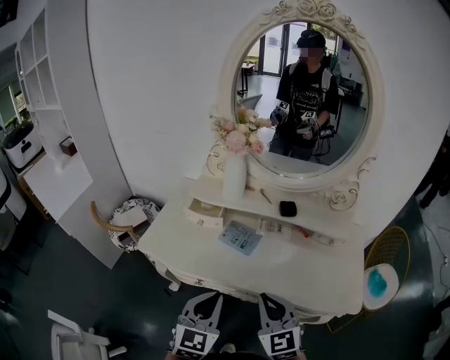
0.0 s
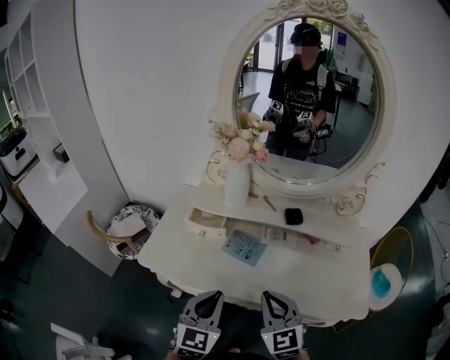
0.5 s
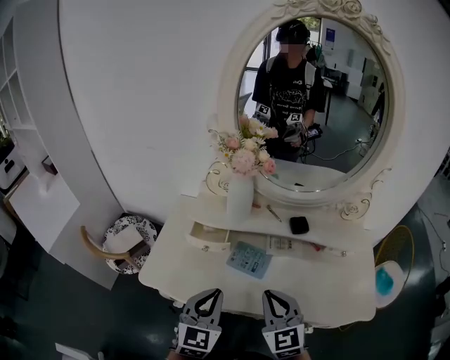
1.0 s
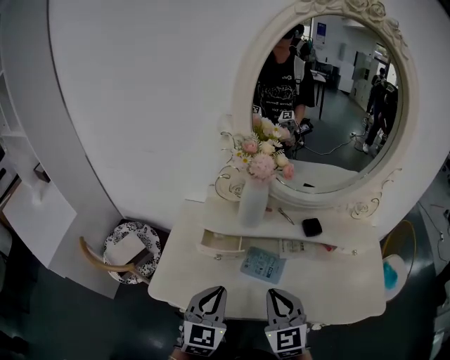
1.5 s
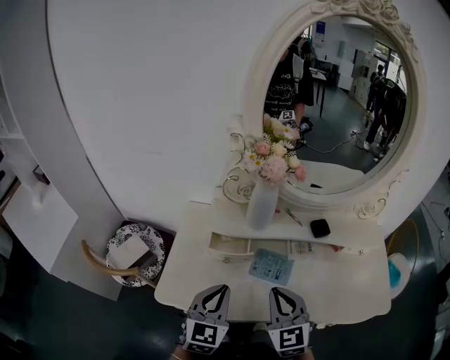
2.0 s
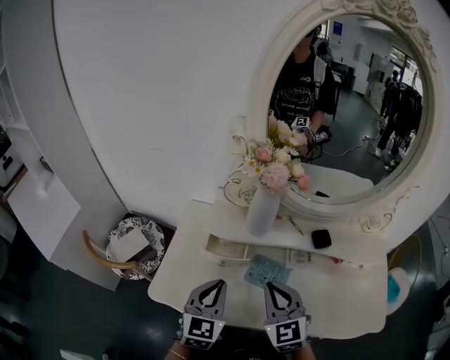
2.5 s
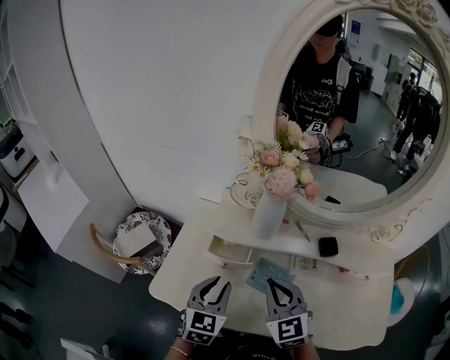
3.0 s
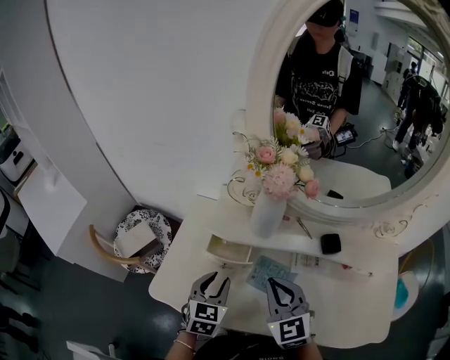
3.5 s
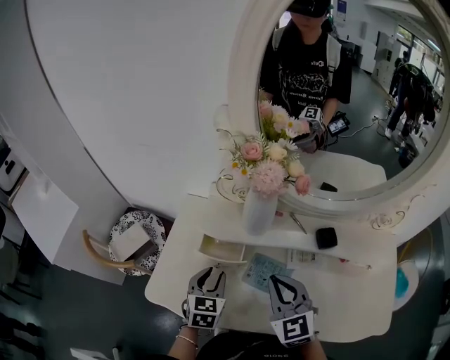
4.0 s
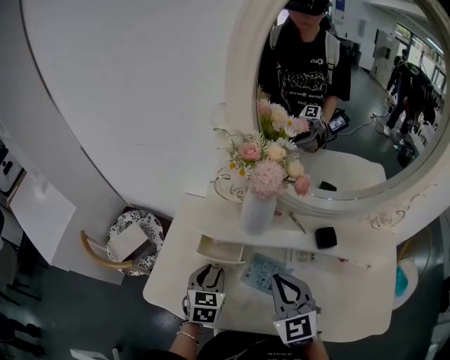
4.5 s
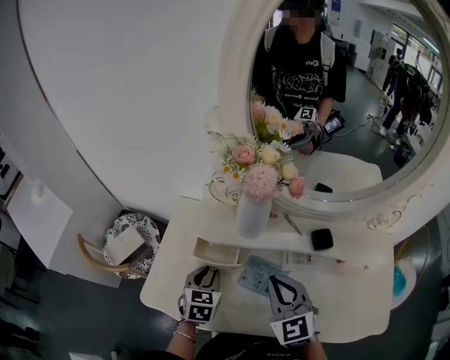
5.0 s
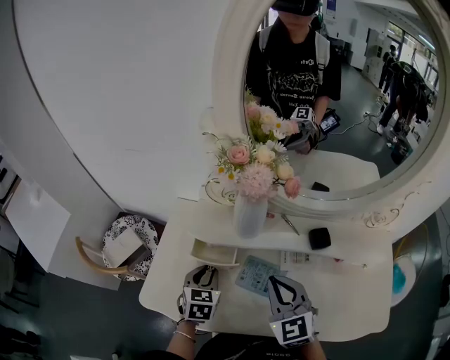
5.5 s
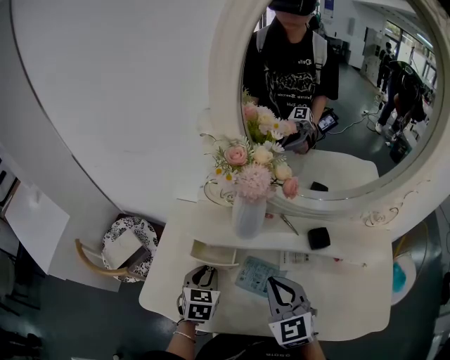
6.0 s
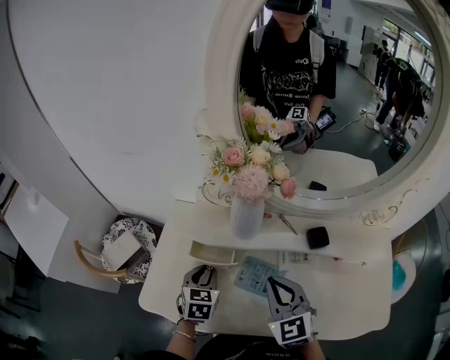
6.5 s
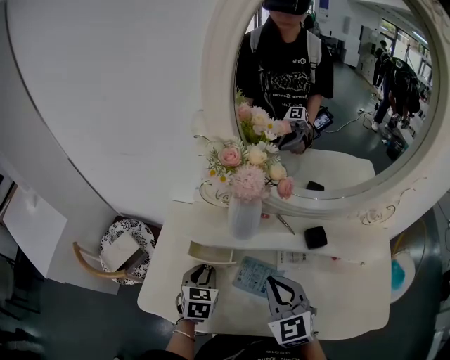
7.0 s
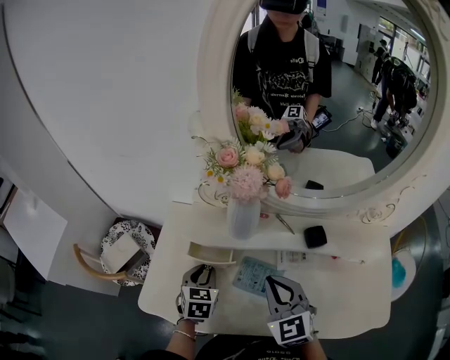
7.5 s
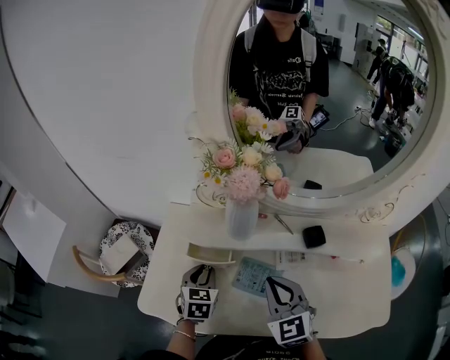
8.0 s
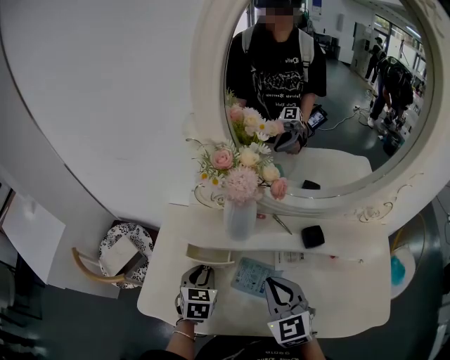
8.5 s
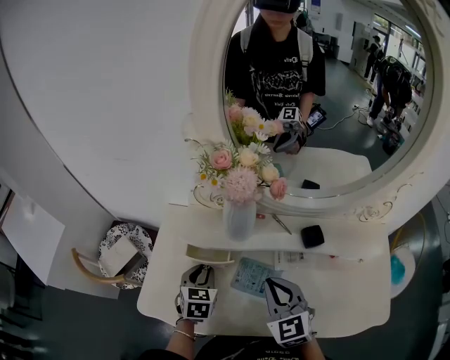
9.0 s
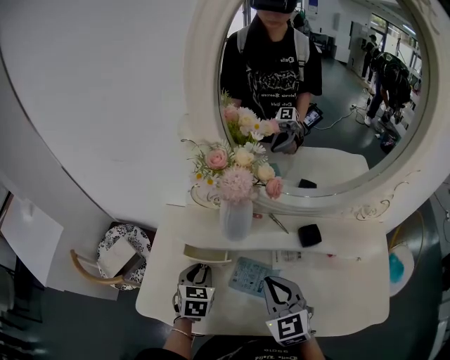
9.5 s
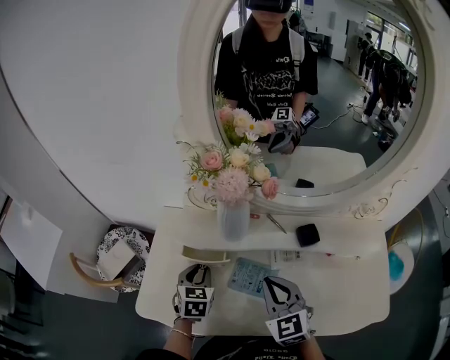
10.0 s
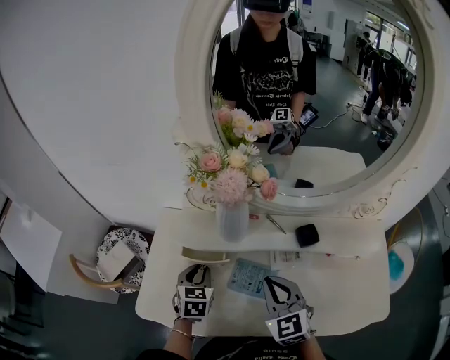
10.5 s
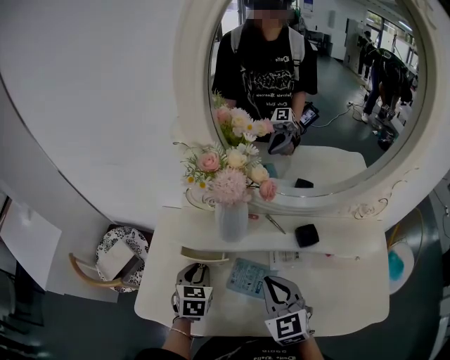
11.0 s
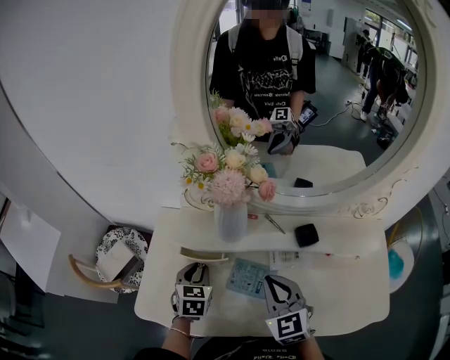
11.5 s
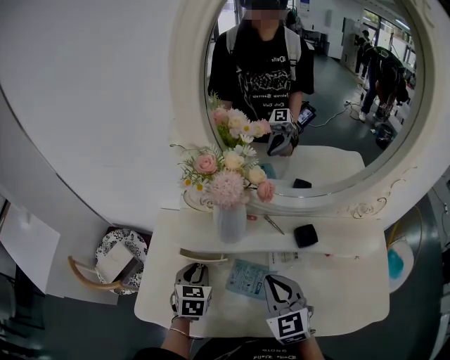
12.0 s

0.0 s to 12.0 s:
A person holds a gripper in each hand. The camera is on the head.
0.0 to 2.0 s: Both grippers move forward and to the left, roughly 20 cm.
2.0 to 4.0 s: The left gripper travels downward and forward by some 15 cm, turns by about 20 degrees, and opens its fingers, while the right gripper heads forward, covering approximately 10 cm.
4.0 to 6.0 s: There are only small adjustments of the grippers.
6.0 to 8.0 s: Both grippers stay about where they are.
8.0 to 10.0 s: Neither gripper changes place.
10.0 to 12.0 s: There are only small adjustments of the grippers.

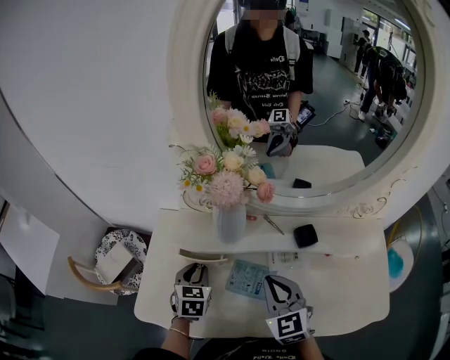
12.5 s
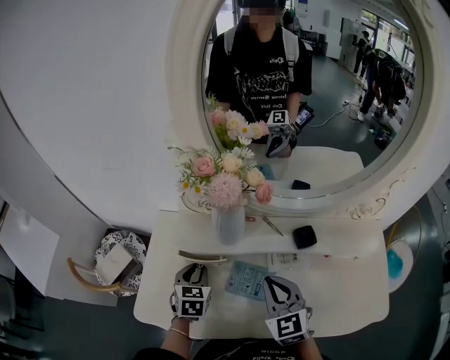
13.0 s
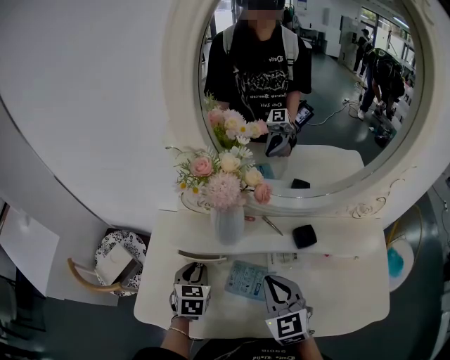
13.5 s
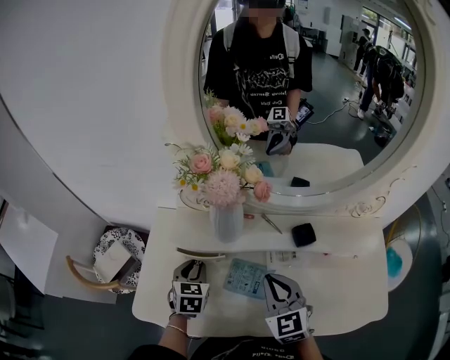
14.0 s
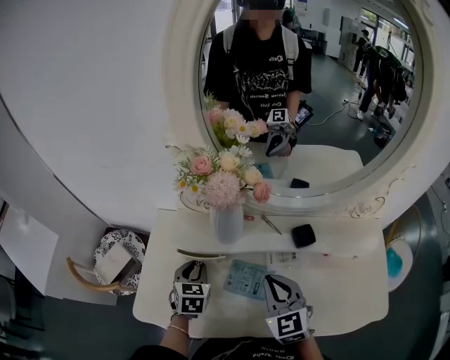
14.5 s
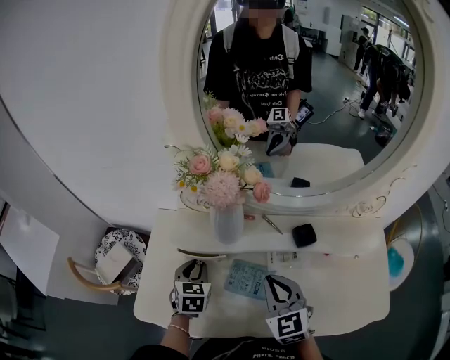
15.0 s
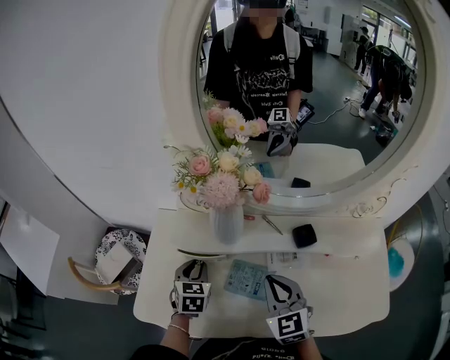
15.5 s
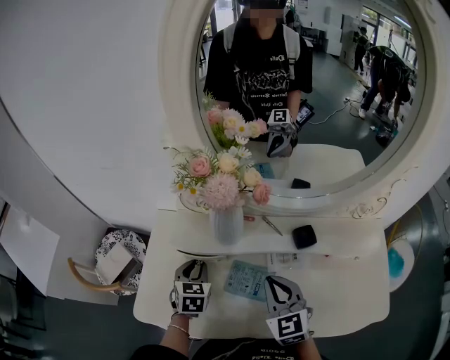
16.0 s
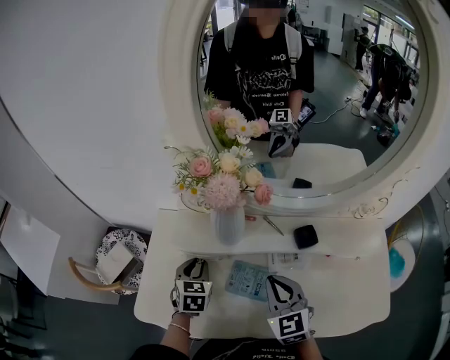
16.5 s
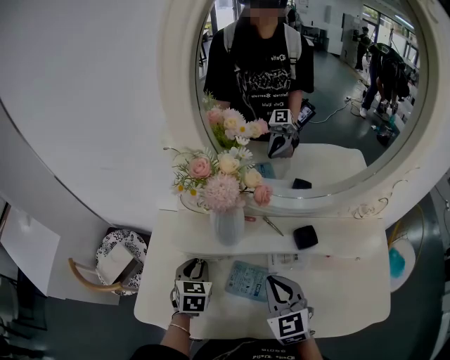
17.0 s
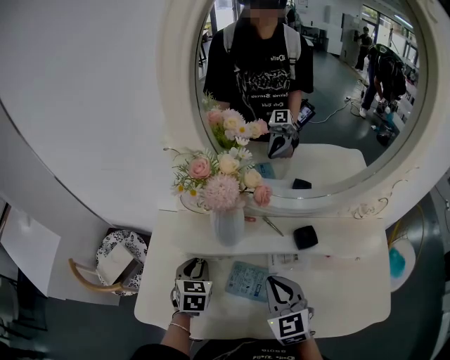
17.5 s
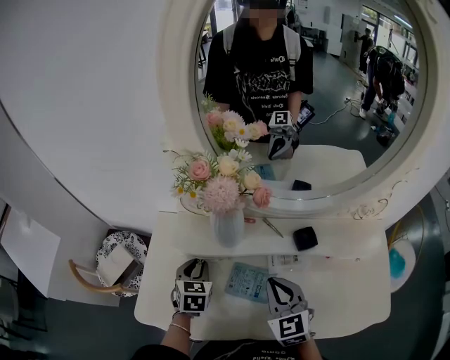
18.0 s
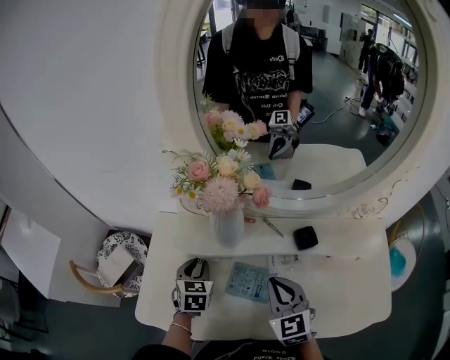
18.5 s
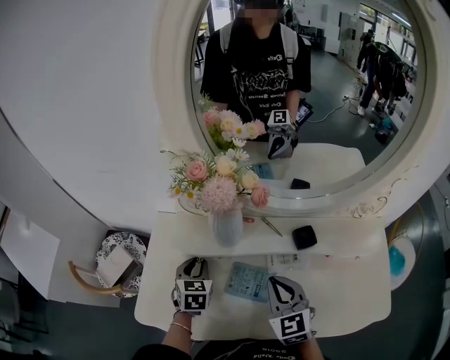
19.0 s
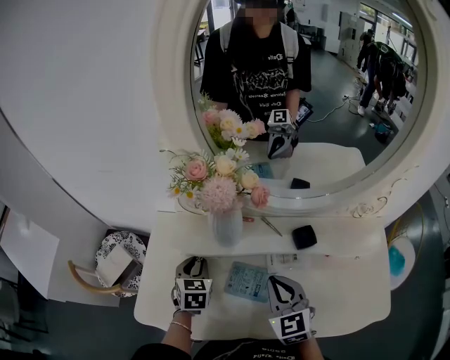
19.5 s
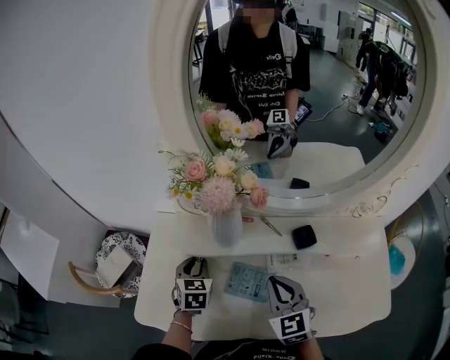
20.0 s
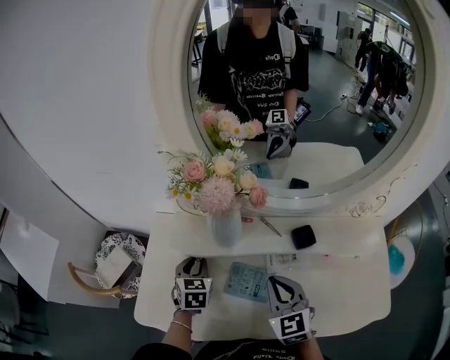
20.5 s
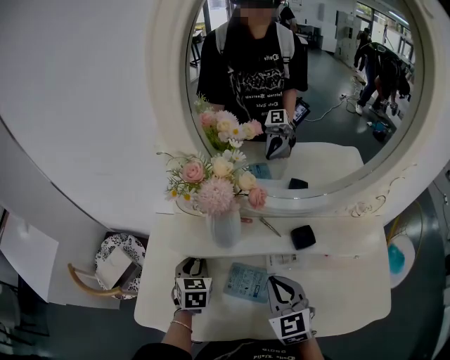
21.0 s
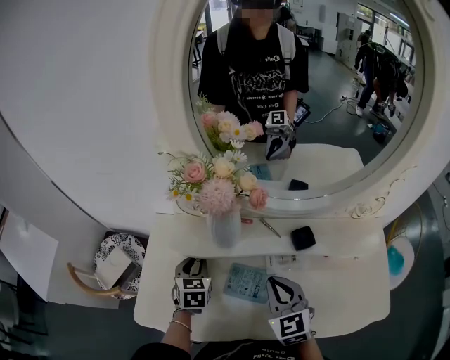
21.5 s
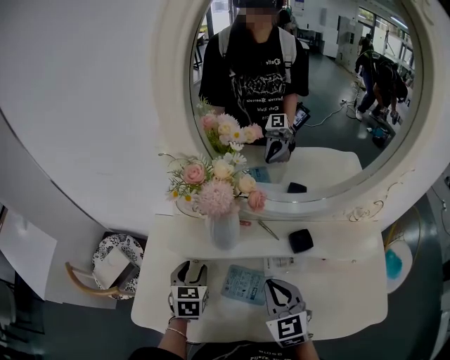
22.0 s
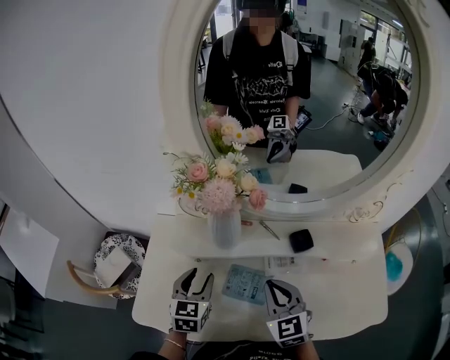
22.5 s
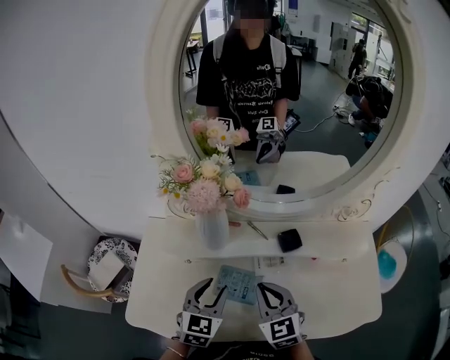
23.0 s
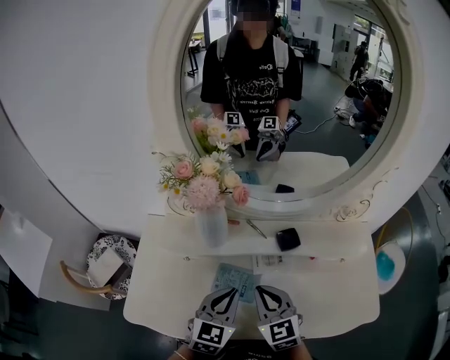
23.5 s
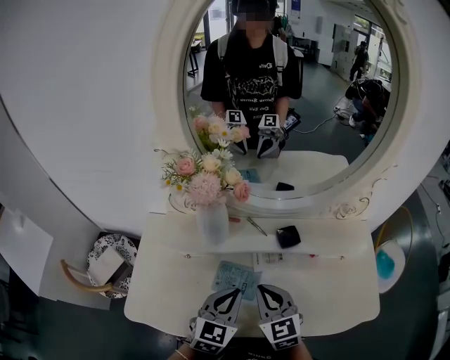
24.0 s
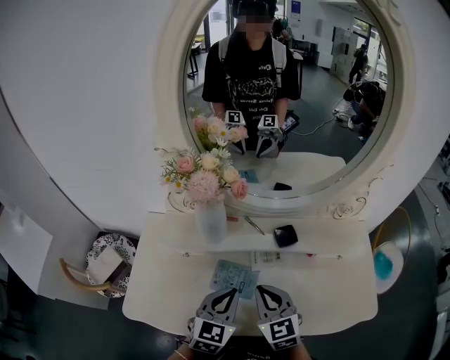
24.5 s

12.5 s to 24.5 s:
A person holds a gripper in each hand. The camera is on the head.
12.5 to 14.5 s: The two grippers keep their place.
14.5 to 16.5 s: Both grippers stay put.
16.5 to 18.5 s: Both grippers stay put.
18.5 to 20.5 s: Neither gripper changes place.
20.5 to 22.5 s: The left gripper moves backward, roughly 5 cm, and opens up.
22.5 to 24.5 s: The left gripper travels to the right and backward by approximately 15 cm, and closes.

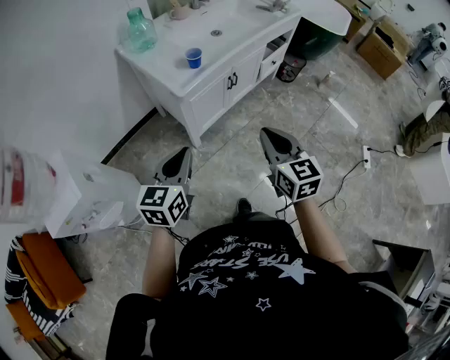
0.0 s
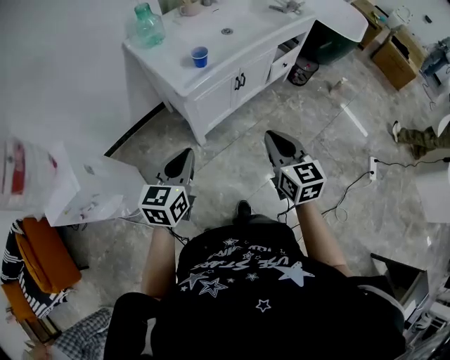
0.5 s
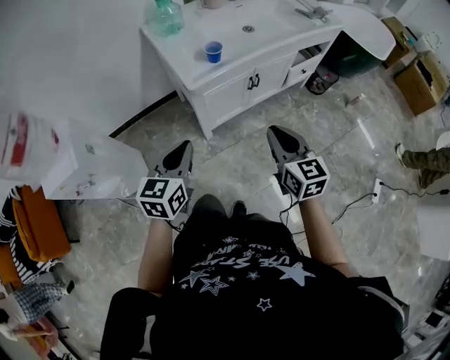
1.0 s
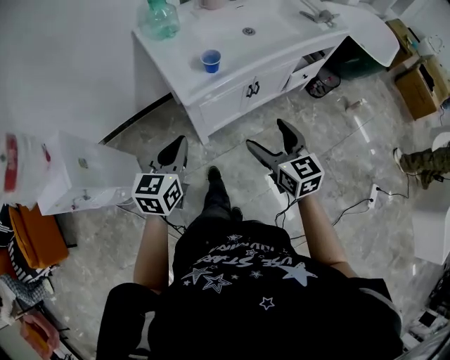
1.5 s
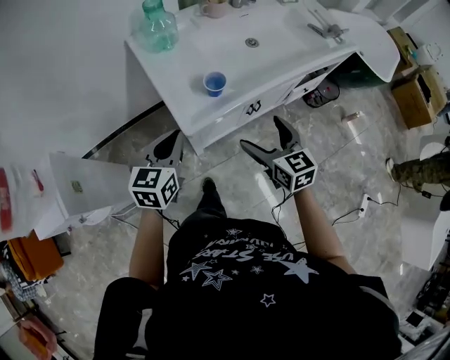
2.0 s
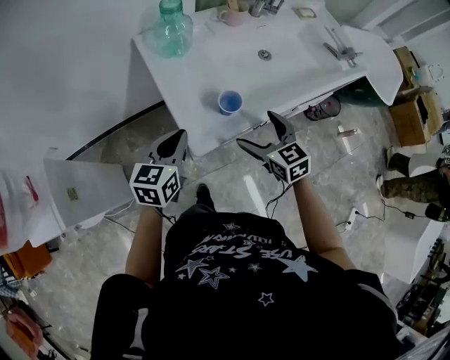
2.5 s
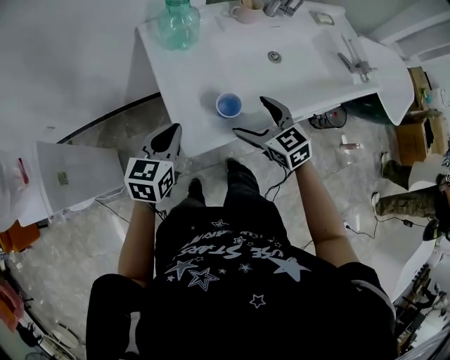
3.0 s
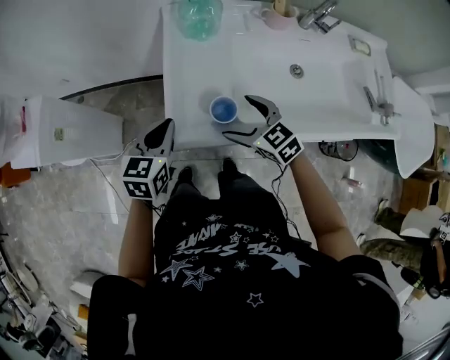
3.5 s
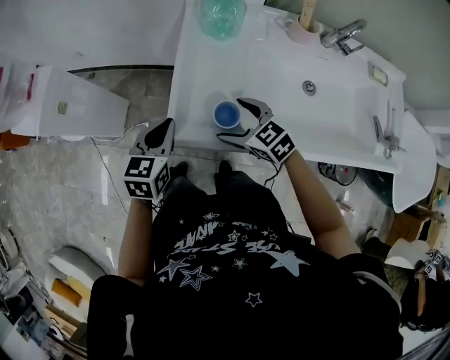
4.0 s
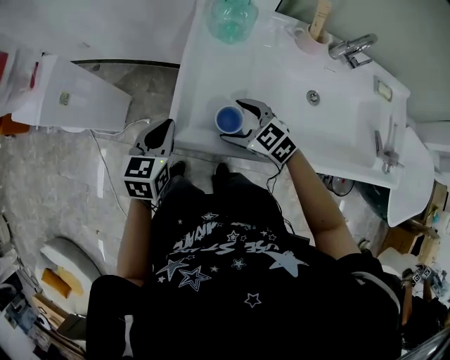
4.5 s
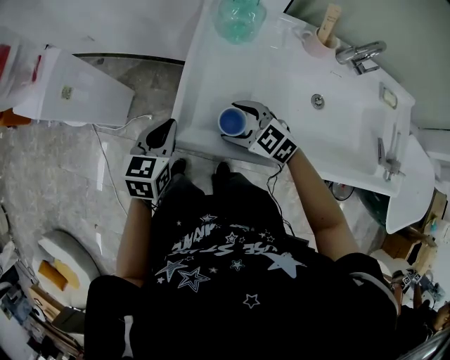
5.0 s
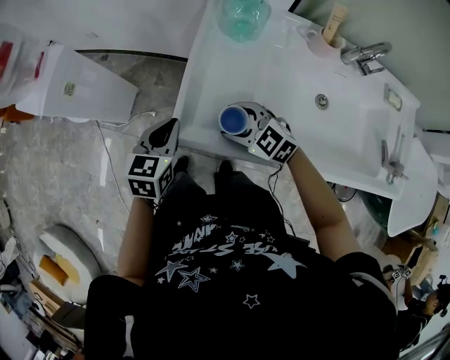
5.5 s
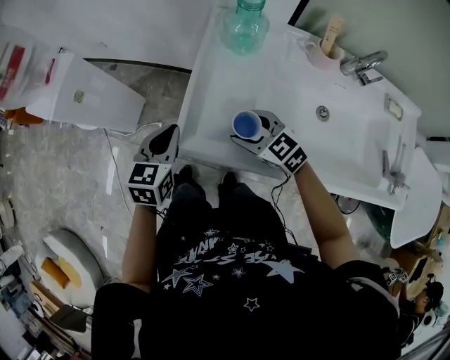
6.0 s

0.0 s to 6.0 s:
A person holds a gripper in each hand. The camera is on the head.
0.0 to 2.0 s: The grippers both shift forward by about 25 cm. The right gripper turns by some 20 degrees, and opens up.
2.0 to 4.0 s: The right gripper shifts by roughly 20 cm, and rotates some 70 degrees. The left gripper changes place by roughly 10 cm, and turns by about 40 degrees.
4.0 to 6.0 s: The right gripper closes.
